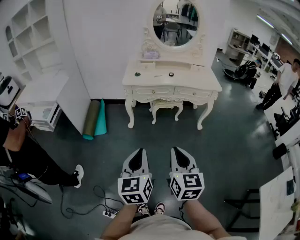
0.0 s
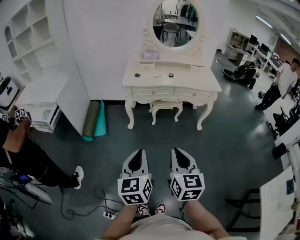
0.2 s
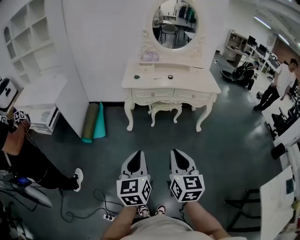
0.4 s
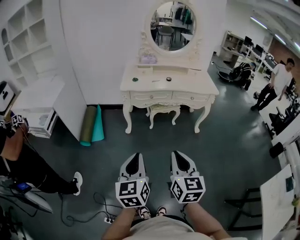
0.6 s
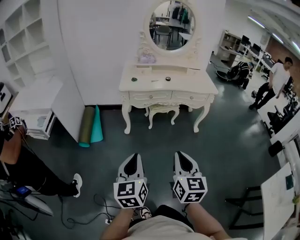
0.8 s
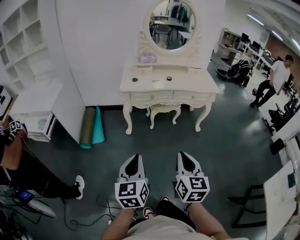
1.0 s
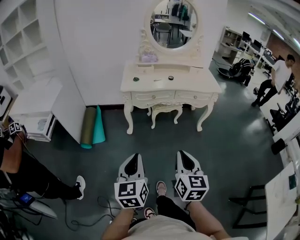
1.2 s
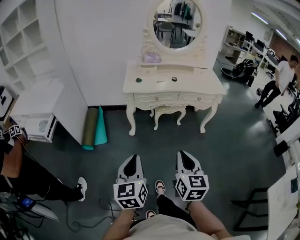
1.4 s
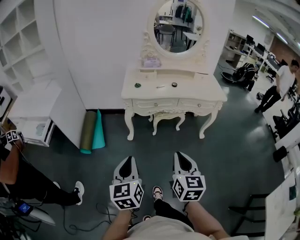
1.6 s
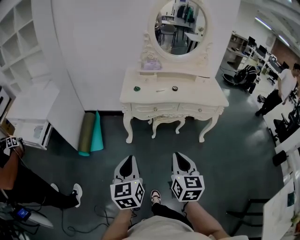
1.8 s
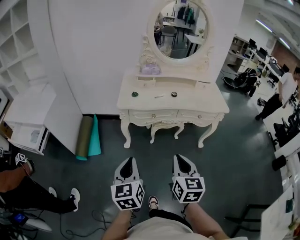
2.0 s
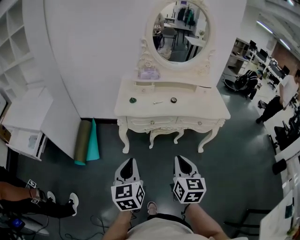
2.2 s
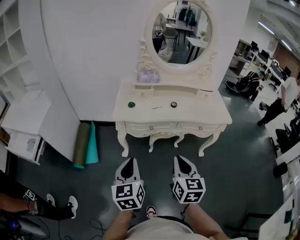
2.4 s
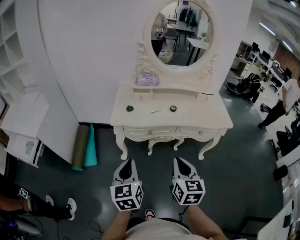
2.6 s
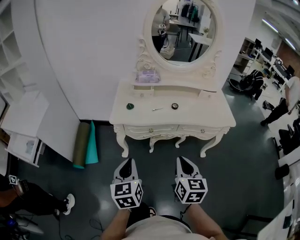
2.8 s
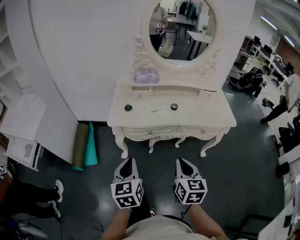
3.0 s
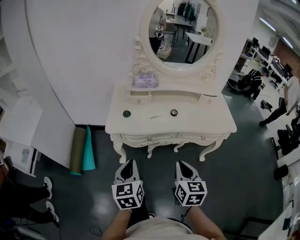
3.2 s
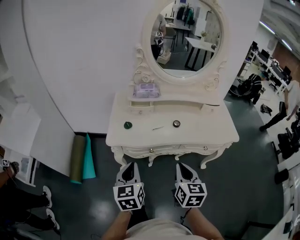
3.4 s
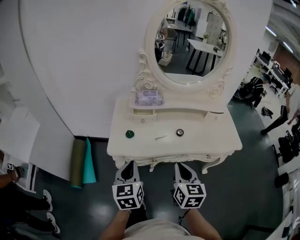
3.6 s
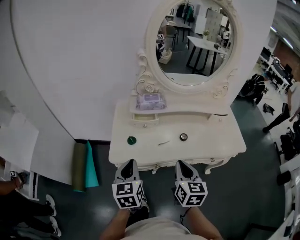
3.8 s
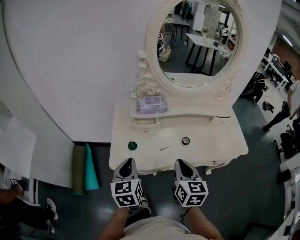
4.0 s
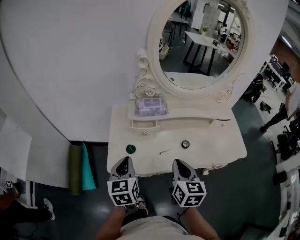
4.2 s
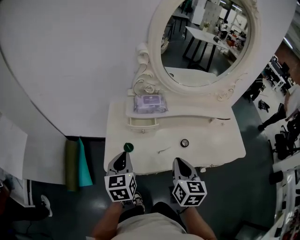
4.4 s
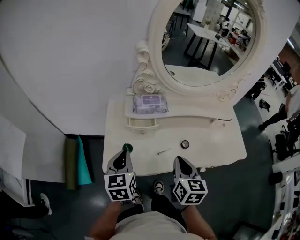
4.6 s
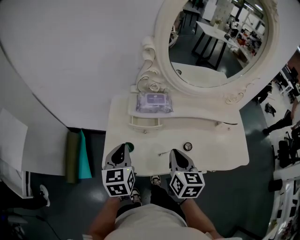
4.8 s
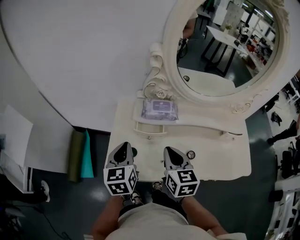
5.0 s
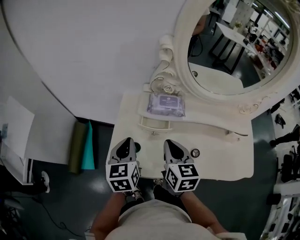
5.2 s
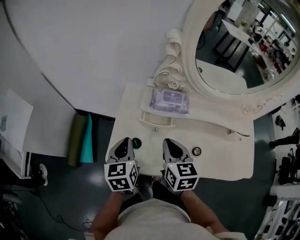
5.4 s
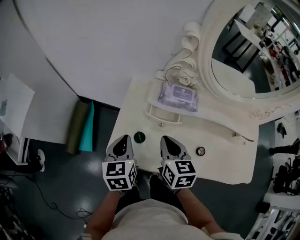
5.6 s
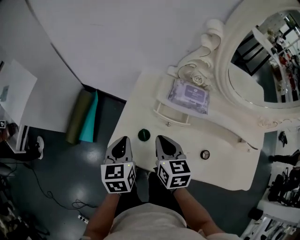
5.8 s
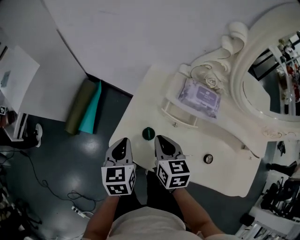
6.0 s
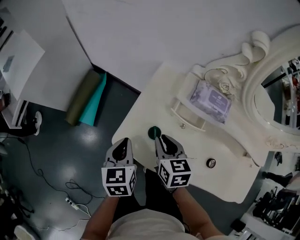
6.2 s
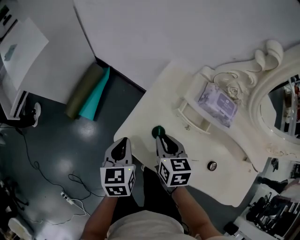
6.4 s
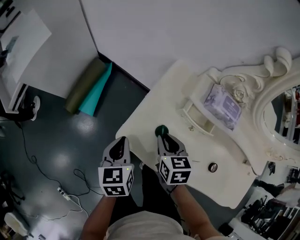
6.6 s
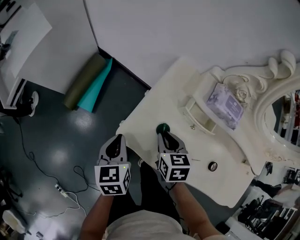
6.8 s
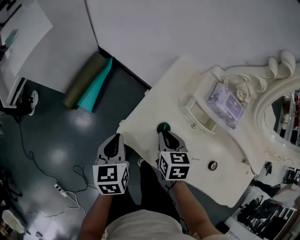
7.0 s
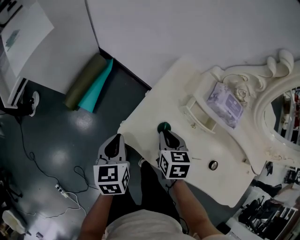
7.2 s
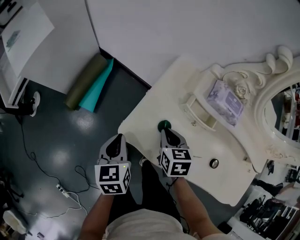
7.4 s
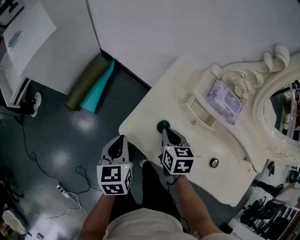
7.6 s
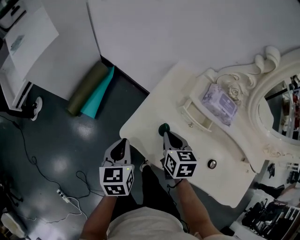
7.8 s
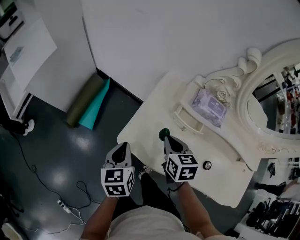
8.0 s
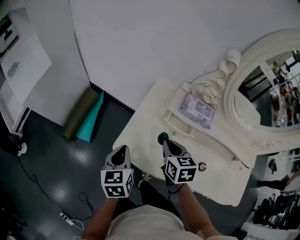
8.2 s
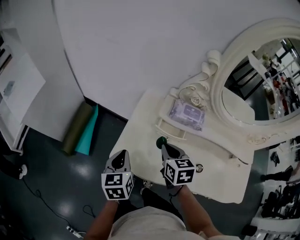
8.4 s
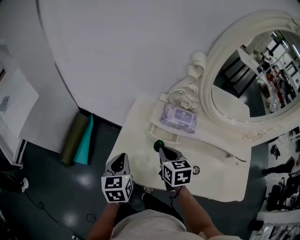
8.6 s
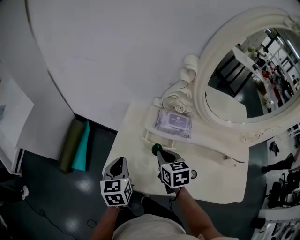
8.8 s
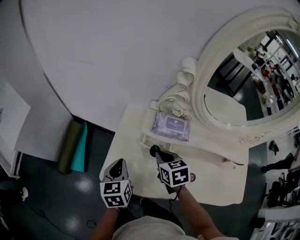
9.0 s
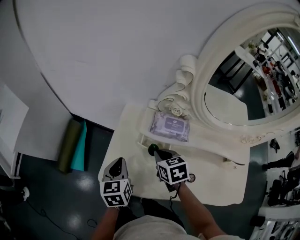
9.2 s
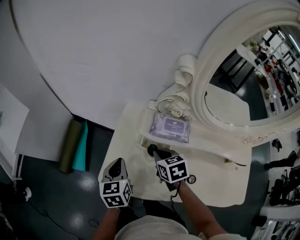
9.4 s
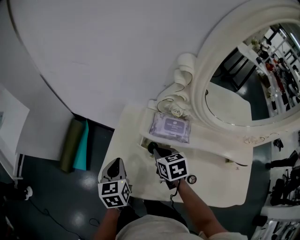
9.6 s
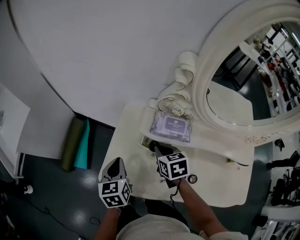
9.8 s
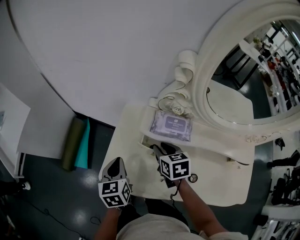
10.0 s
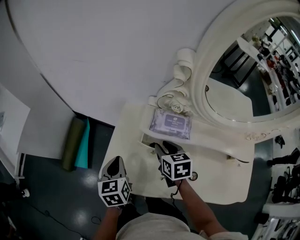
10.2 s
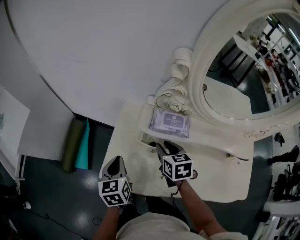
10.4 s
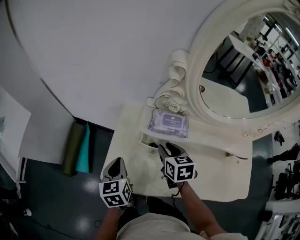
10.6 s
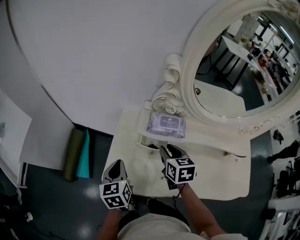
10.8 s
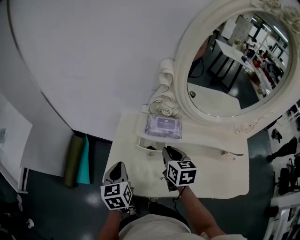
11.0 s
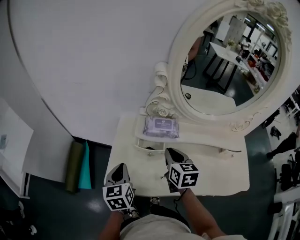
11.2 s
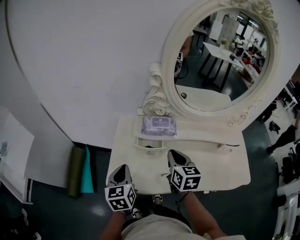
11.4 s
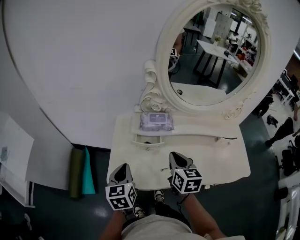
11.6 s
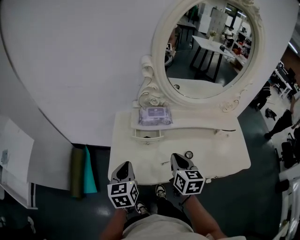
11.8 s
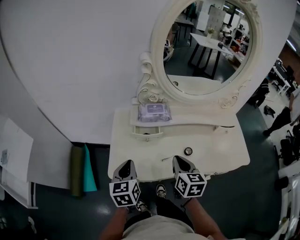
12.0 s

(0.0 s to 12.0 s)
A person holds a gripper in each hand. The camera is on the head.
0.0 s - 1.6 s: The left gripper travels forward and to the left by approximately 15 cm. Meanwhile the right gripper is displaced forward by some 15 cm.
1.6 s - 3.0 s: The two grippers go about 30 cm forward.
3.0 s - 4.4 s: Both grippers move forward, some 30 cm.
4.4 s - 6.0 s: The right gripper ends up roughly 25 cm from where it was, and turns by approximately 40 degrees. The left gripper shifts approximately 10 cm downward, and changes its angle by roughly 30 degrees.
6.0 s - 7.6 s: The right gripper goes roughly 5 cm downward. The left gripper goes about 5 cm to the left.
7.6 s - 9.0 s: The right gripper is displaced to the right and upward by approximately 15 cm. Meanwhile the left gripper is displaced to the right, forward and upward by some 15 cm.
9.0 s - 10.4 s: The right gripper opens.
10.4 s - 12.0 s: The right gripper heads backward, covering about 20 cm, turns by about 30 degrees, and closes its fingers, while the left gripper is displaced backward and upward by about 10 cm, and swivels approximately 20 degrees.

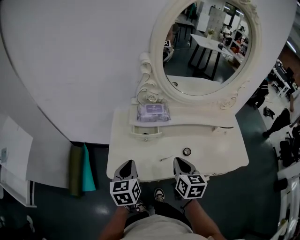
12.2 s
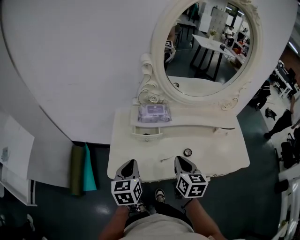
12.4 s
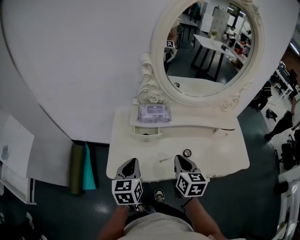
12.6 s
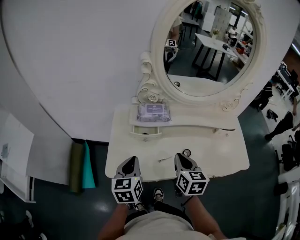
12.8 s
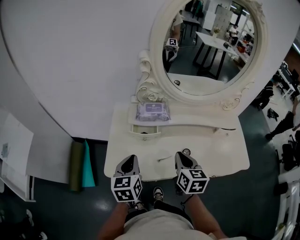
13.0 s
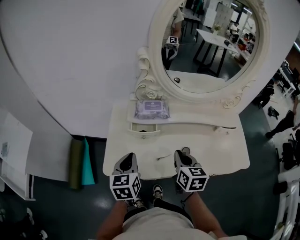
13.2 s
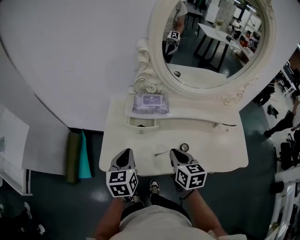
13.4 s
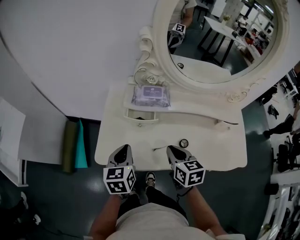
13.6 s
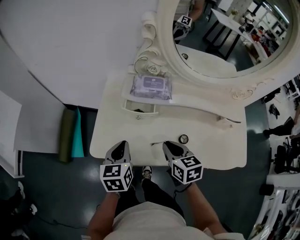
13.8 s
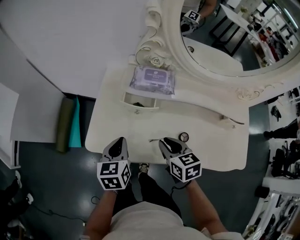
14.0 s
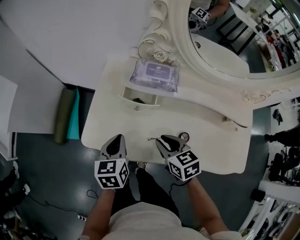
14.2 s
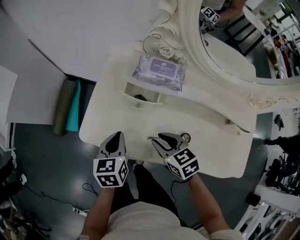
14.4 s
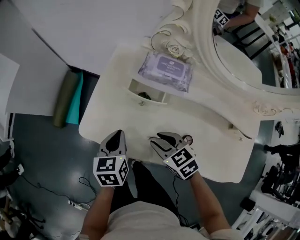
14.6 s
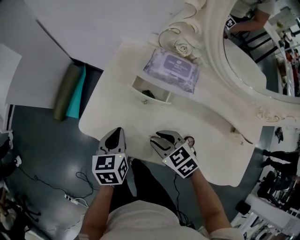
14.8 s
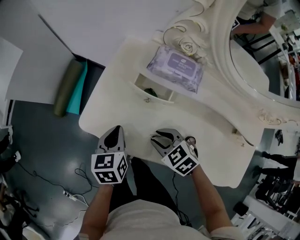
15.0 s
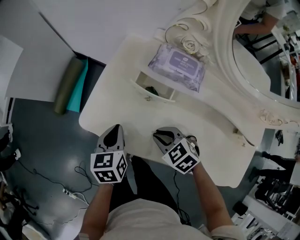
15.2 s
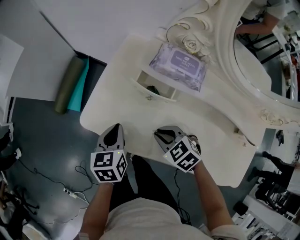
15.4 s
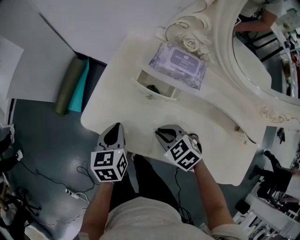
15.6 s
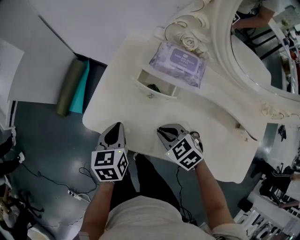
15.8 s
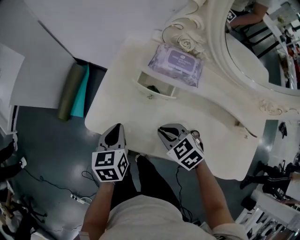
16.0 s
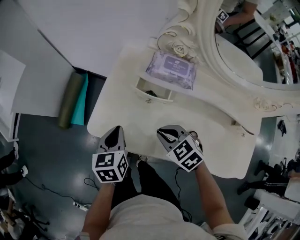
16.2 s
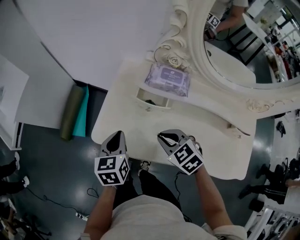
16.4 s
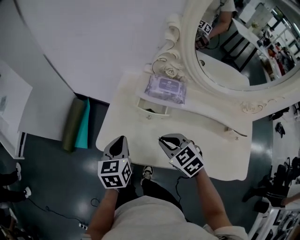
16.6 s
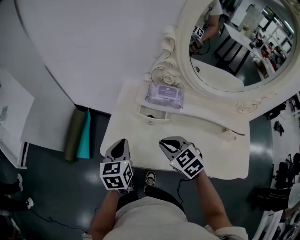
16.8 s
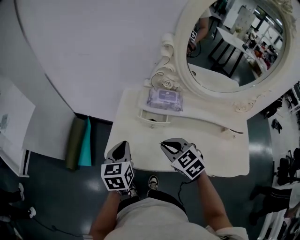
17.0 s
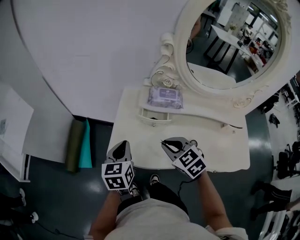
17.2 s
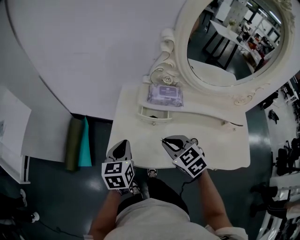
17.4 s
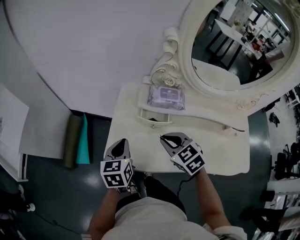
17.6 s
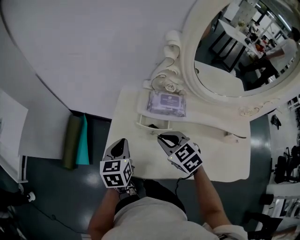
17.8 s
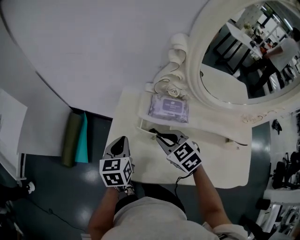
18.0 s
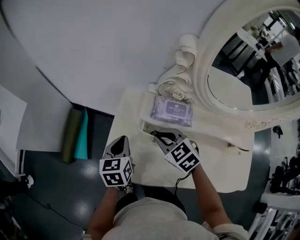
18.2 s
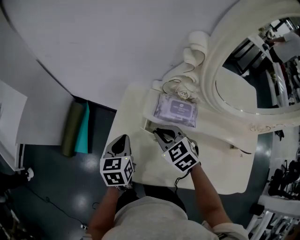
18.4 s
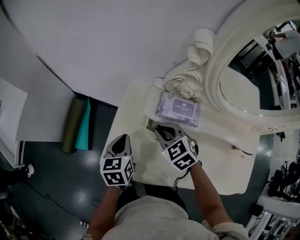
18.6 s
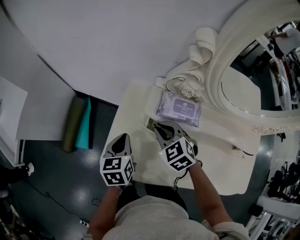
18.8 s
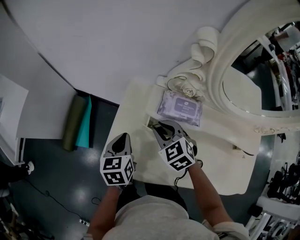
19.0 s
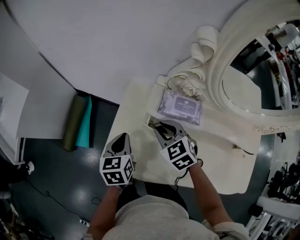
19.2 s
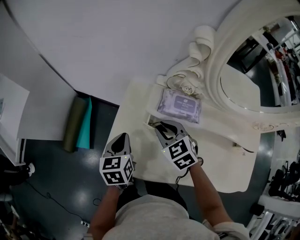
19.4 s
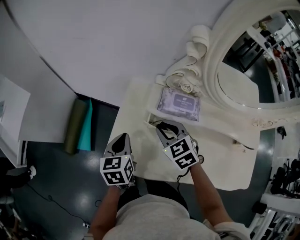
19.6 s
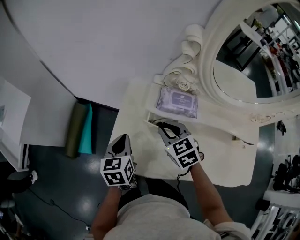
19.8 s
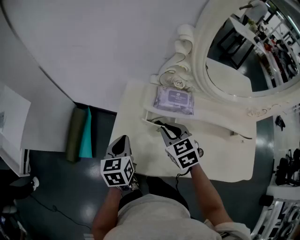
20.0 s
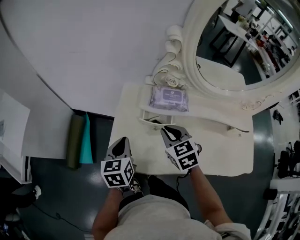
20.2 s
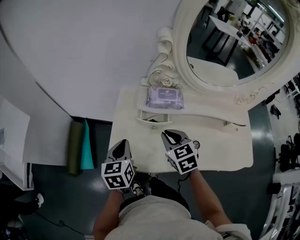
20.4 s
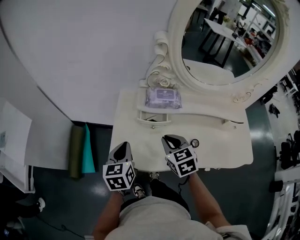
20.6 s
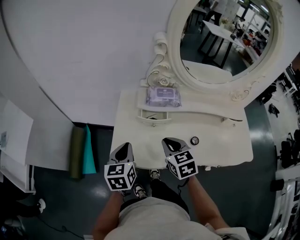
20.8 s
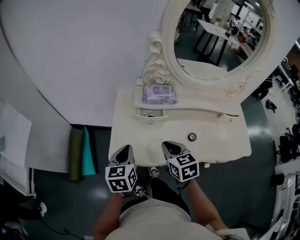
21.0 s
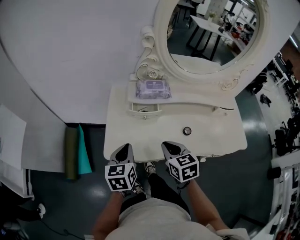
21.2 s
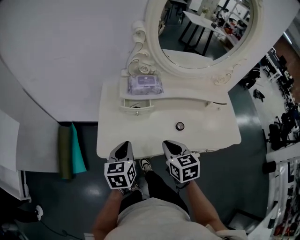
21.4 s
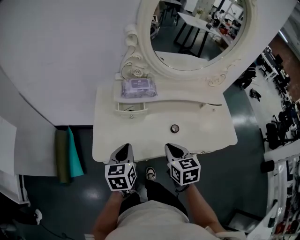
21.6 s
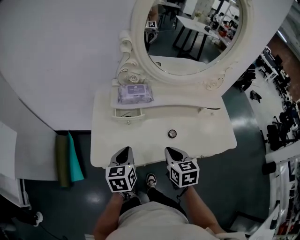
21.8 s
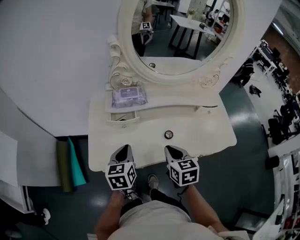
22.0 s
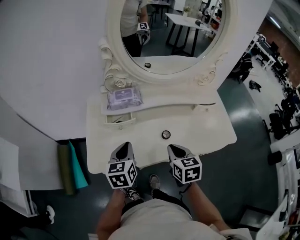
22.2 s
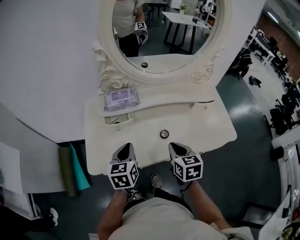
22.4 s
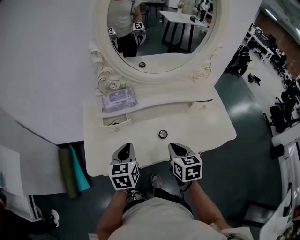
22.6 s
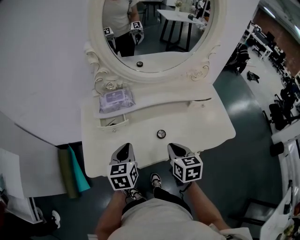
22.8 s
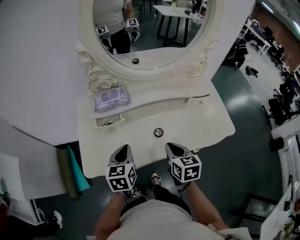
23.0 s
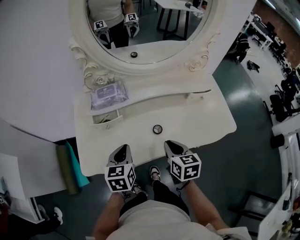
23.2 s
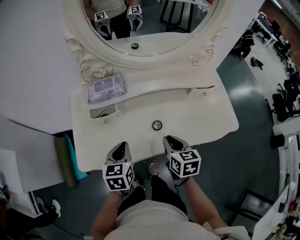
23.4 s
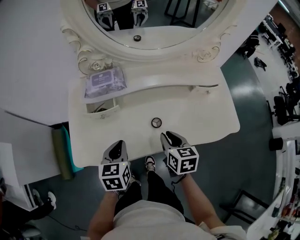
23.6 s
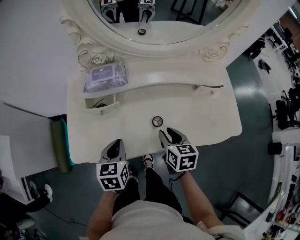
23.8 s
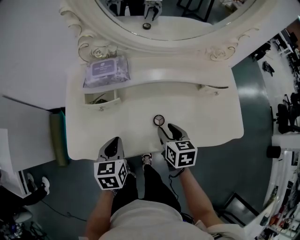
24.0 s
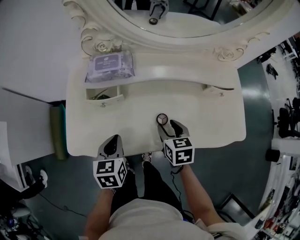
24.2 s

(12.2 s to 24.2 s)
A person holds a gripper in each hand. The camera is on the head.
12.2 s - 13.8 s: The right gripper is displaced downward by some 5 cm, and turns by some 30 degrees. The left gripper moves roughly 5 cm.
13.8 s - 15.2 s: Both grippers travel together downward, about 10 cm. The left gripper swivels some 20 degrees; the right gripper swivels some 60 degrees.
15.2 s - 16.6 s: Both grippers move upward, roughly 10 cm.
16.6 s - 18.2 s: Both grippers move forward, about 15 cm.
18.2 s - 19.8 s: The grippers make only small movements.
19.8 s - 21.2 s: The right gripper is displaced backward by approximately 20 cm, and changes its angle by approximately 30 degrees. The left gripper is displaced backward by some 10 cm.
21.2 s - 22.6 s: Both grippers move to the right, approximately 15 cm.
22.6 s - 24.2 s: The left gripper travels downward by about 10 cm. Meanwhile the right gripper goes about 15 cm downward and forward, and opens up.
